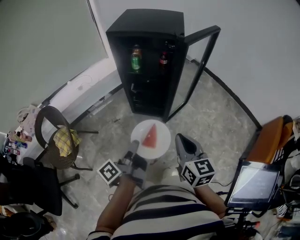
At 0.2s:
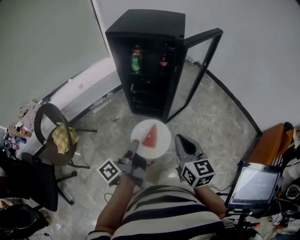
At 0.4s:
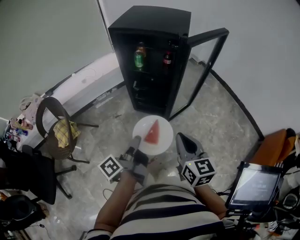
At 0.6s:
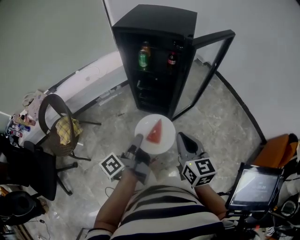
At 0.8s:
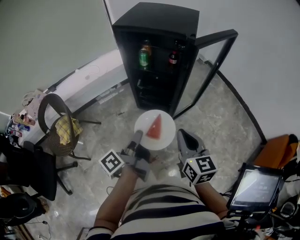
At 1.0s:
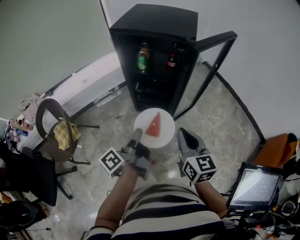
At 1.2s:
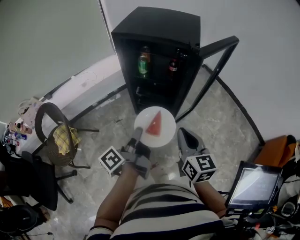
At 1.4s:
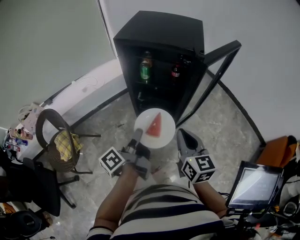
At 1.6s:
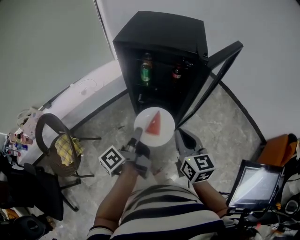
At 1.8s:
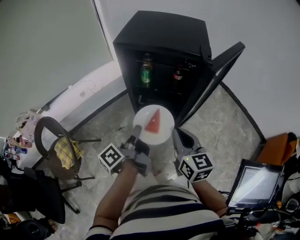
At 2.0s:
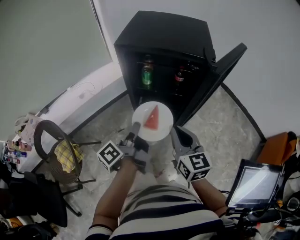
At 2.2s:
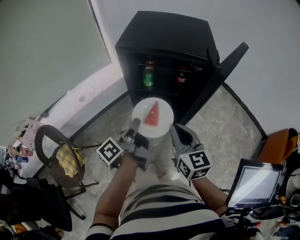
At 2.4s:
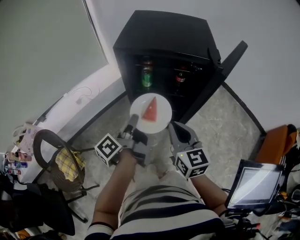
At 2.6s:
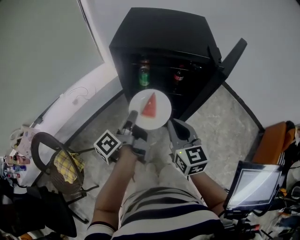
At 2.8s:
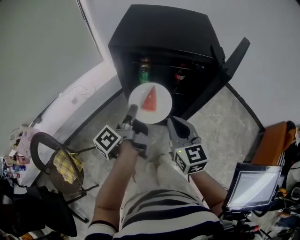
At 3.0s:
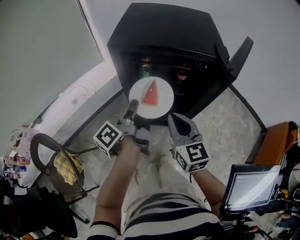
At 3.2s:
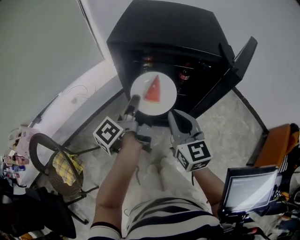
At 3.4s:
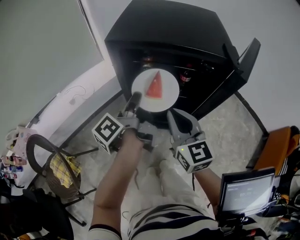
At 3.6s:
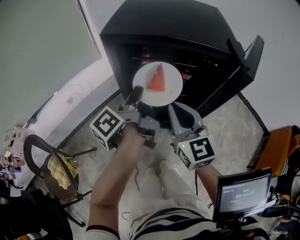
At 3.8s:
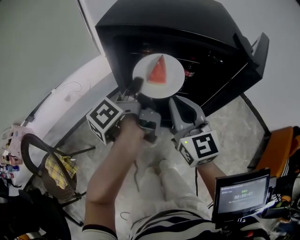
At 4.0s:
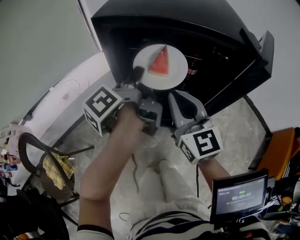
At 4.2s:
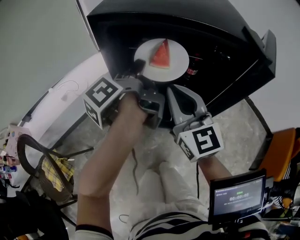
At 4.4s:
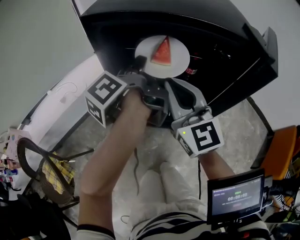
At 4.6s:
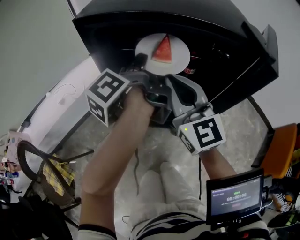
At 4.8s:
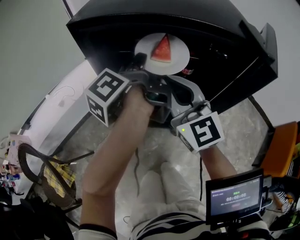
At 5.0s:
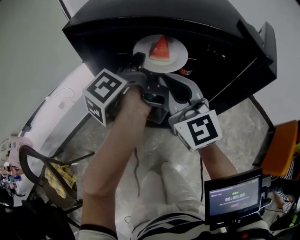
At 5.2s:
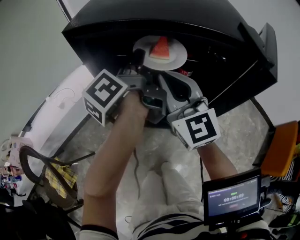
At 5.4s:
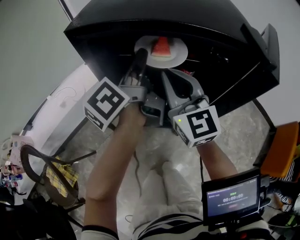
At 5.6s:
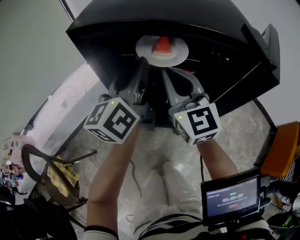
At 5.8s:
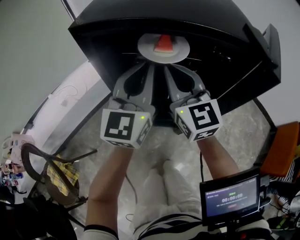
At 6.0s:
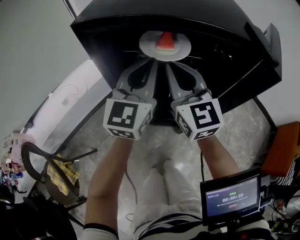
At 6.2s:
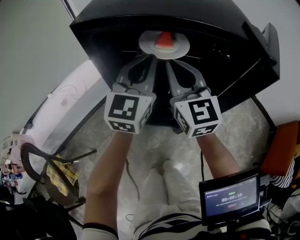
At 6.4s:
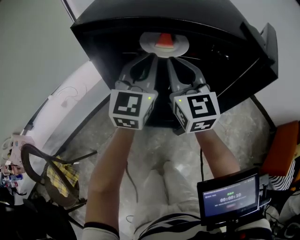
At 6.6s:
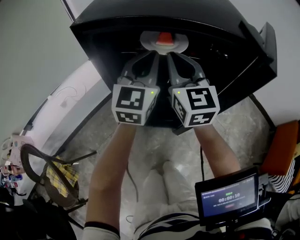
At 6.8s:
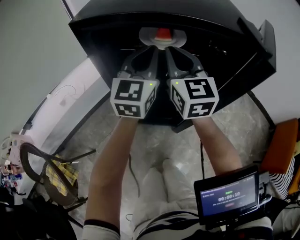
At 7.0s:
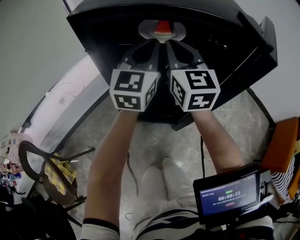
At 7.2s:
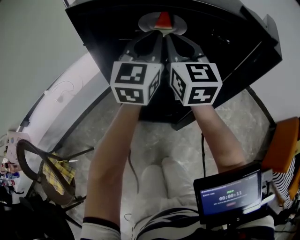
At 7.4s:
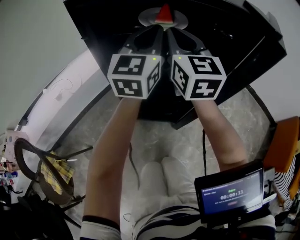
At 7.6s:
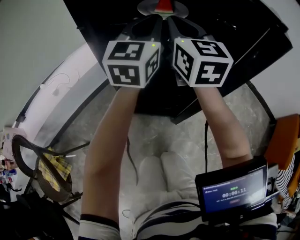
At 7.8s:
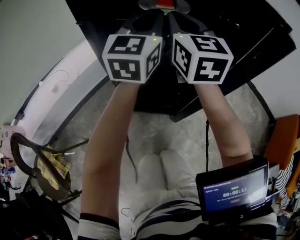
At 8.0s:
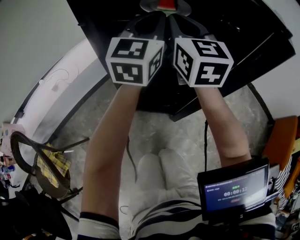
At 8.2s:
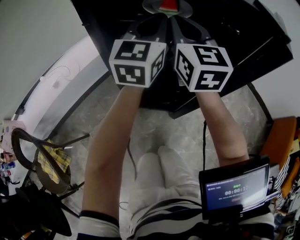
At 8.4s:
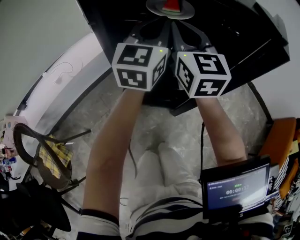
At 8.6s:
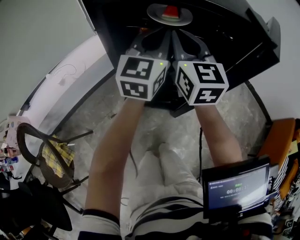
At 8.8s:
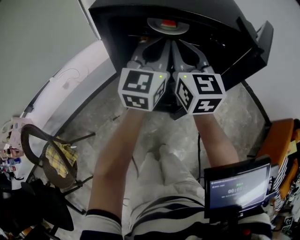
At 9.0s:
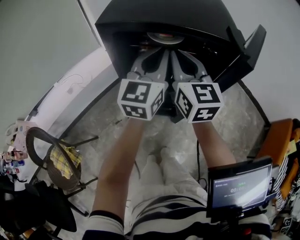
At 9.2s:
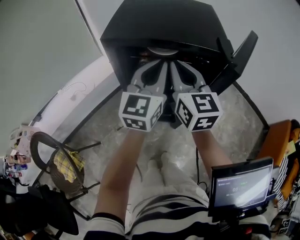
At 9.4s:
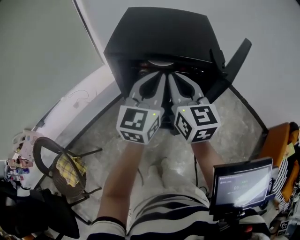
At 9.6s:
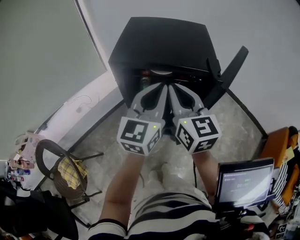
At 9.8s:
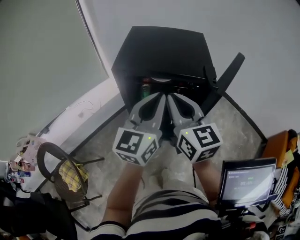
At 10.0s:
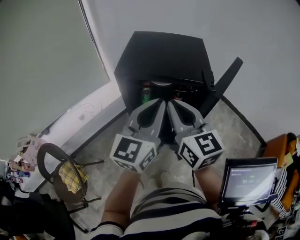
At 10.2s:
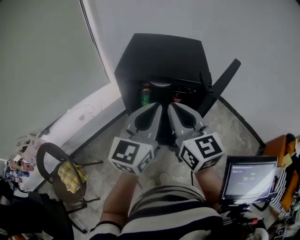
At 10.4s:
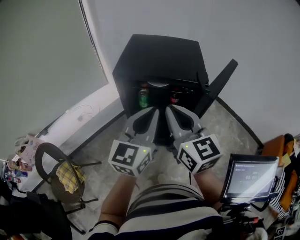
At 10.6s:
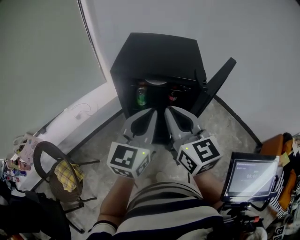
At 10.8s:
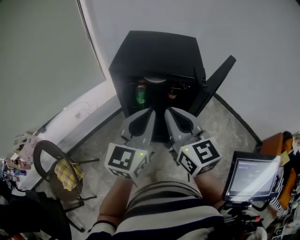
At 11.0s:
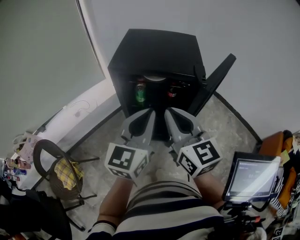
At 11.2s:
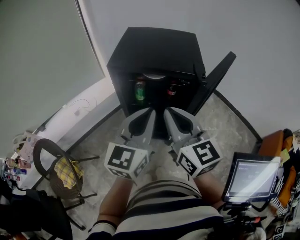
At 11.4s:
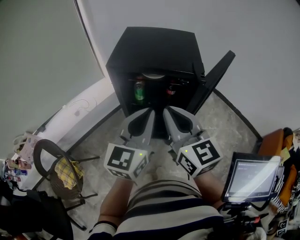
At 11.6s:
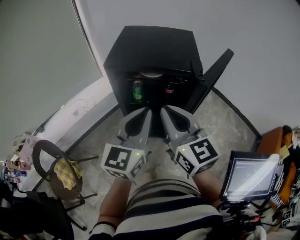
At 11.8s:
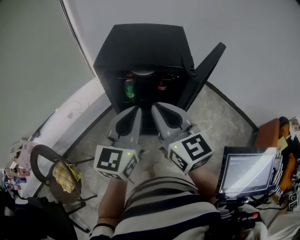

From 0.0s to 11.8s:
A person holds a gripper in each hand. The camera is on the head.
From 0.0s to 1.4s: The grippers both shift forward by some 15 cm.
From 1.4s to 3.0s: The right gripper moves forward and to the left, roughly 15 cm. Meanwhile the left gripper goes about 20 cm forward.
From 3.0s to 4.4s: The left gripper goes approximately 15 cm forward and to the right; the right gripper goes about 10 cm forward, and swivels about 20 degrees.
From 4.4s to 6.0s: The left gripper moves some 5 cm, rolls clockwise, seen from behind, by approximately 90 degrees, and opens, then closes again. The right gripper is displaced forward by about 5 cm.
From 6.0s to 7.4s: Both grippers move forward, roughly 5 cm.
From 7.4s to 8.8s: The grippers both shift backward by approximately 5 cm.
From 8.8s to 10.4s: The two grippers go roughly 20 cm backward and upward.
From 10.4s to 11.8s: The grippers make only small movements.

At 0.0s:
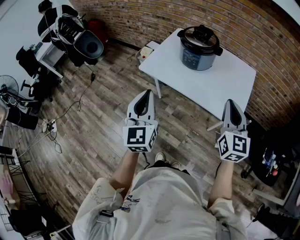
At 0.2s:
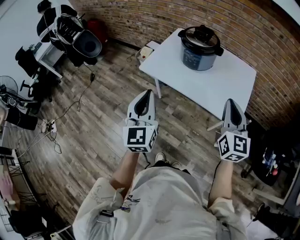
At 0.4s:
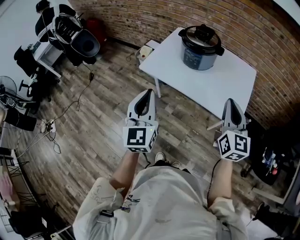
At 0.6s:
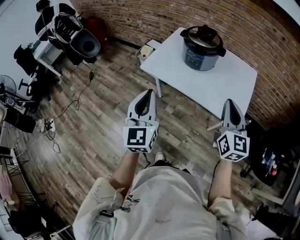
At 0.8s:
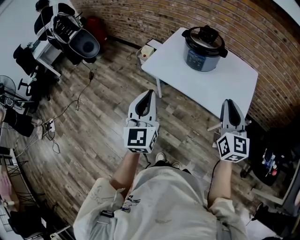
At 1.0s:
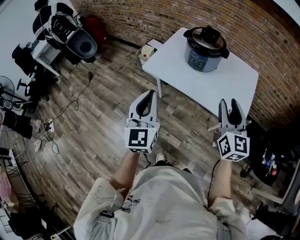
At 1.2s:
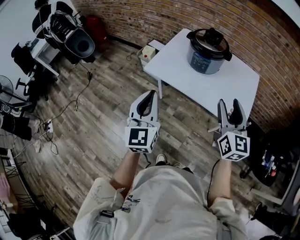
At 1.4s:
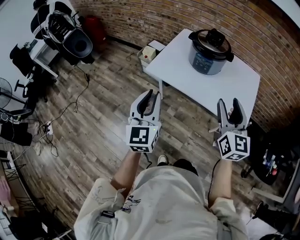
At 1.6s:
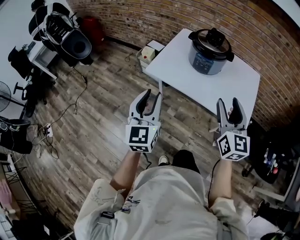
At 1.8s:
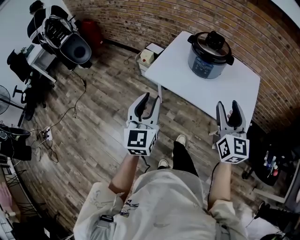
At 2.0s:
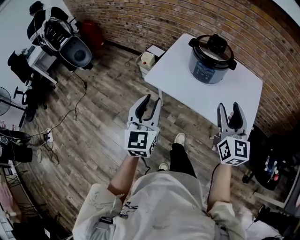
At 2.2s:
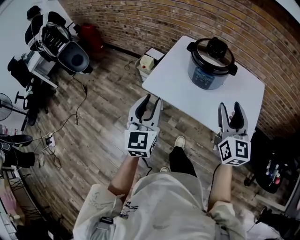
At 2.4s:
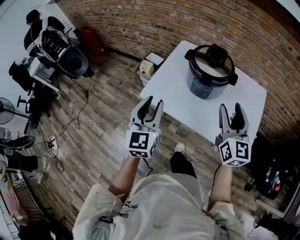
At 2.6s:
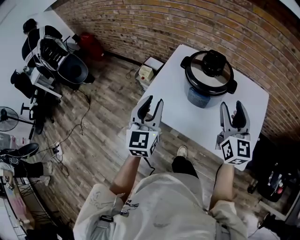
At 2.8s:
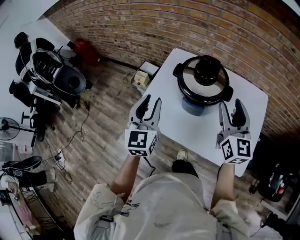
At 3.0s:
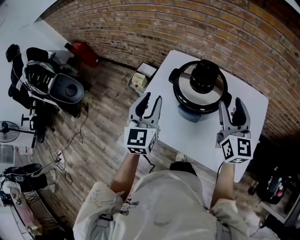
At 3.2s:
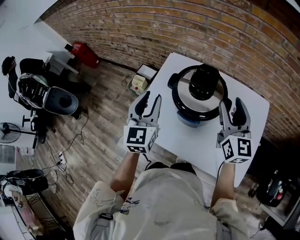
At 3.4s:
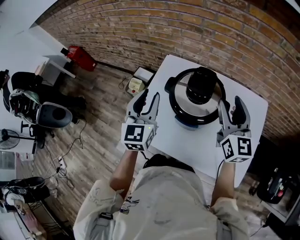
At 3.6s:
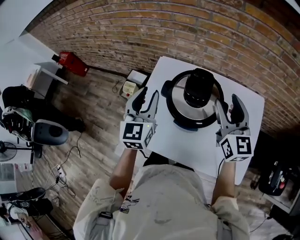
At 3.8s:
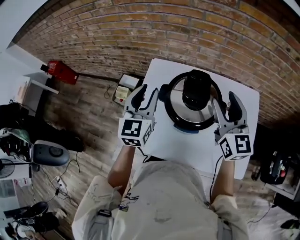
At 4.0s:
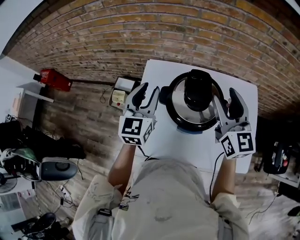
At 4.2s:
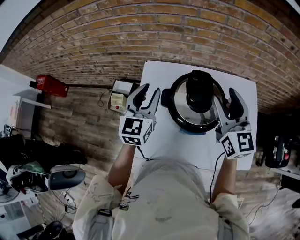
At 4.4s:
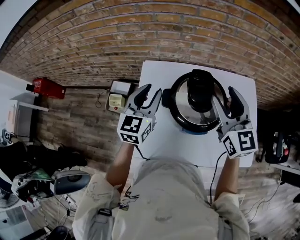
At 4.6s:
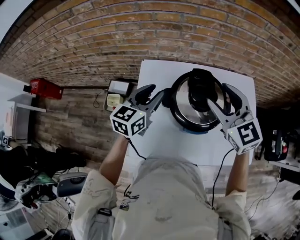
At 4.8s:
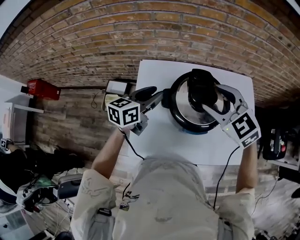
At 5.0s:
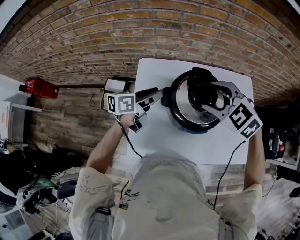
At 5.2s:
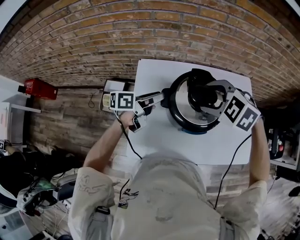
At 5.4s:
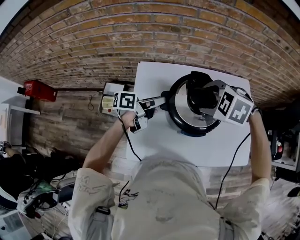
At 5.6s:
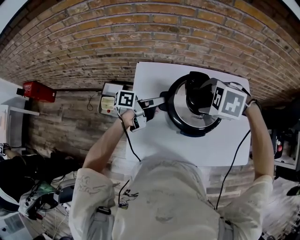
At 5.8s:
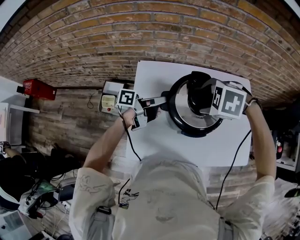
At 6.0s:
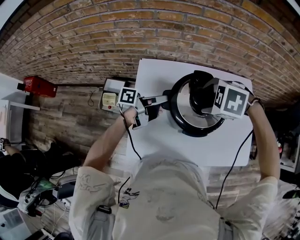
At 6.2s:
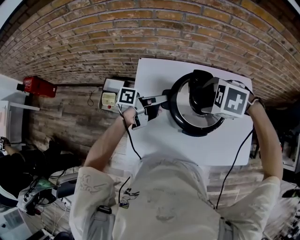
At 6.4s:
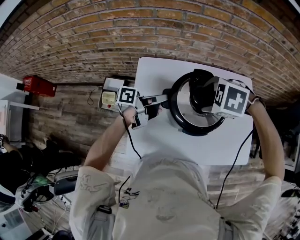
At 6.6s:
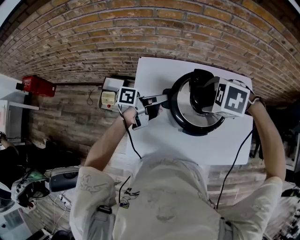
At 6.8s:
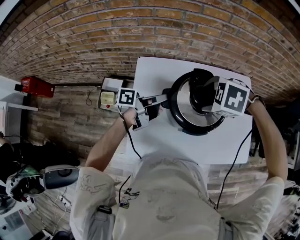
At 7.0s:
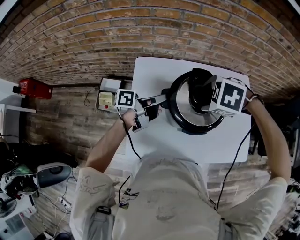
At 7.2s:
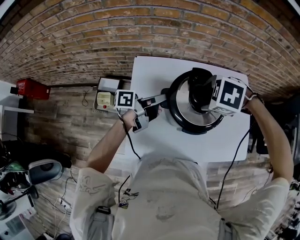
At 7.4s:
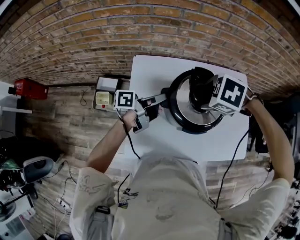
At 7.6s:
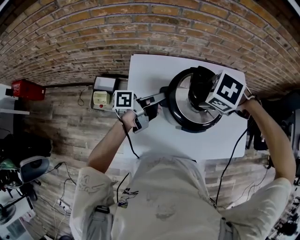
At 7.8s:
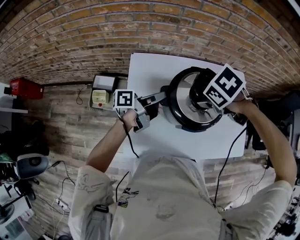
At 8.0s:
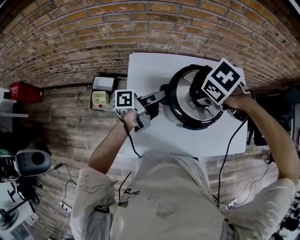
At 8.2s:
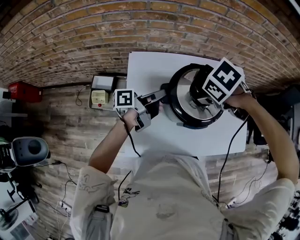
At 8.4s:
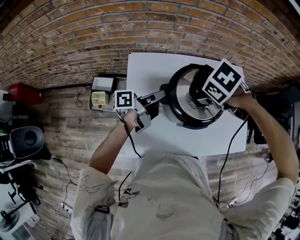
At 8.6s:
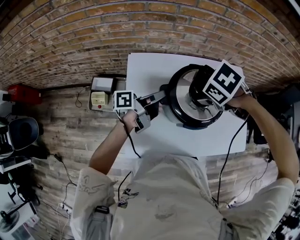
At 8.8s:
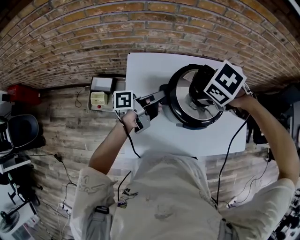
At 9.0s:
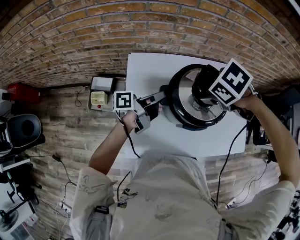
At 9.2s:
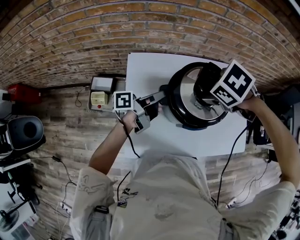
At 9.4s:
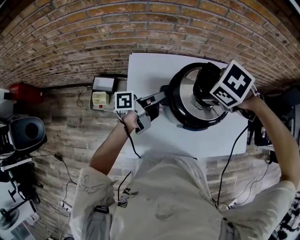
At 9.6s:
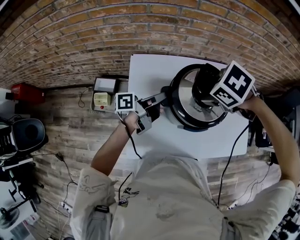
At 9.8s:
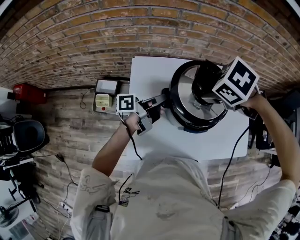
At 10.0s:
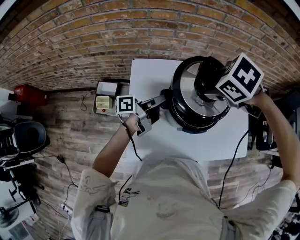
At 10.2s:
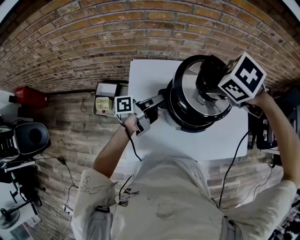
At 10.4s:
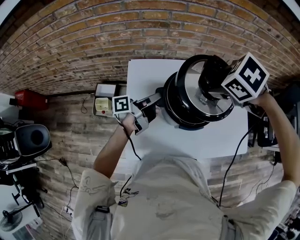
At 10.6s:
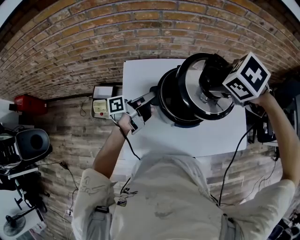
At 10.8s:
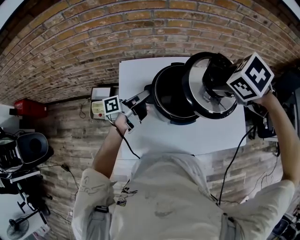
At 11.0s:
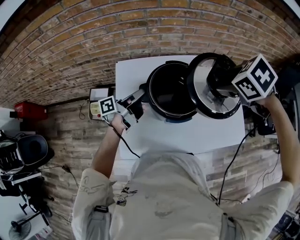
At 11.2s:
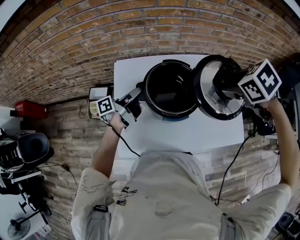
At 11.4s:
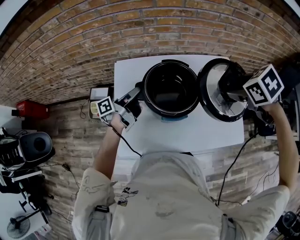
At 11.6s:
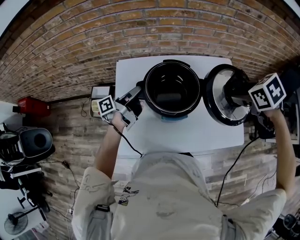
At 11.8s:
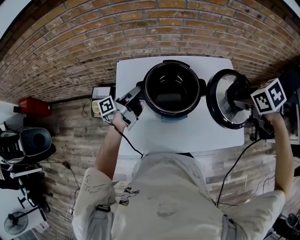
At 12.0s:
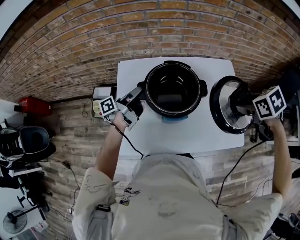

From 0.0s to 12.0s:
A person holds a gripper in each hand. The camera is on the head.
From 0.0s to 1.6s: Both grippers move to the left, about 10 cm. The right gripper opens its fingers. The left gripper opens its fingers.
From 1.6s to 3.0s: The two grippers go about 30 cm forward.
From 3.0s to 4.4s: The left gripper goes about 15 cm forward, and swivels about 30 degrees. Meanwhile the right gripper heads forward and to the left, covering some 10 cm.
From 4.4s to 6.0s: Both grippers travel together downward, roughly 10 cm. The left gripper twists roughly 70 degrees counterclockwise, seen from behind. Meanwhile the right gripper tilts its fingers roughly 70 degrees downward.
From 6.0s to 7.6s: The right gripper changes its angle by roughly 20 degrees.
From 9.0s to 10.4s: The right gripper goes approximately 5 cm upward.
From 10.4s to 12.0s: The right gripper changes place by roughly 25 cm, and turns by roughly 30 degrees.
